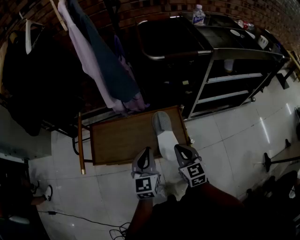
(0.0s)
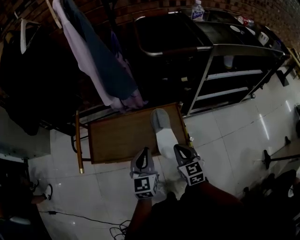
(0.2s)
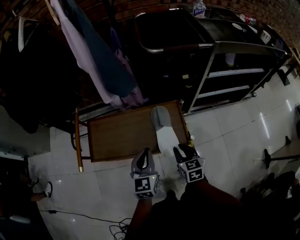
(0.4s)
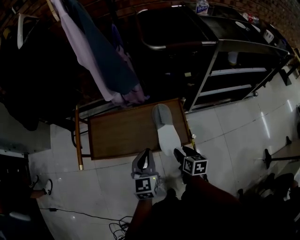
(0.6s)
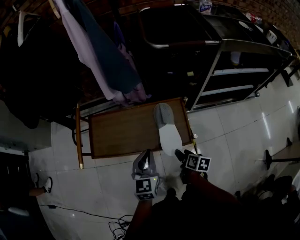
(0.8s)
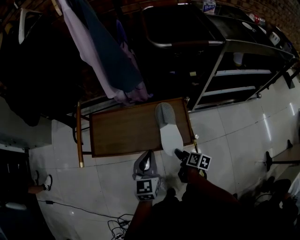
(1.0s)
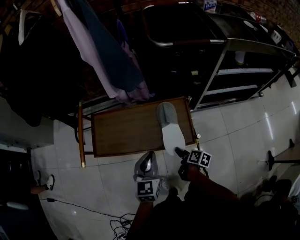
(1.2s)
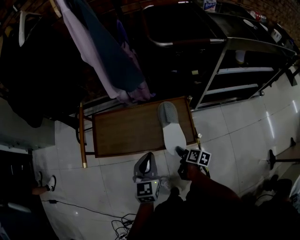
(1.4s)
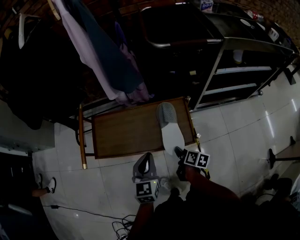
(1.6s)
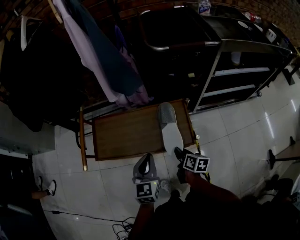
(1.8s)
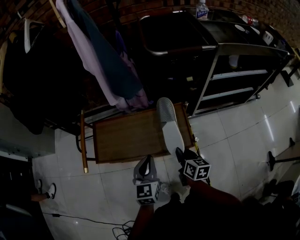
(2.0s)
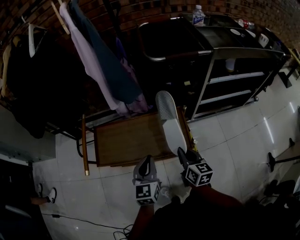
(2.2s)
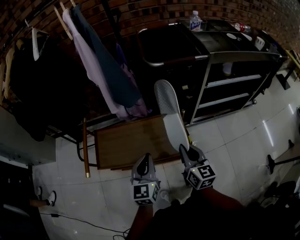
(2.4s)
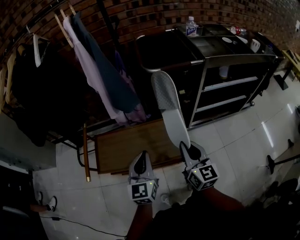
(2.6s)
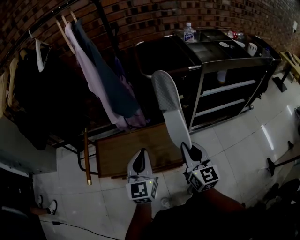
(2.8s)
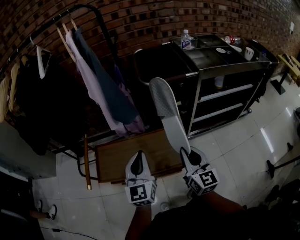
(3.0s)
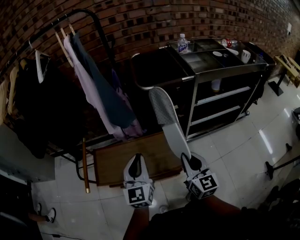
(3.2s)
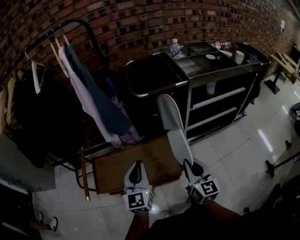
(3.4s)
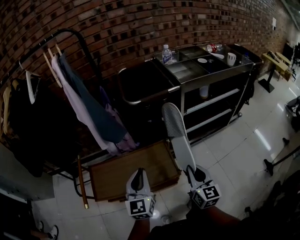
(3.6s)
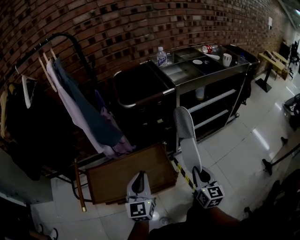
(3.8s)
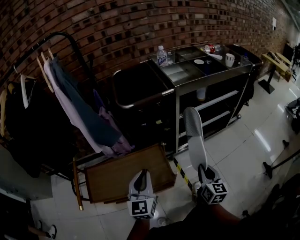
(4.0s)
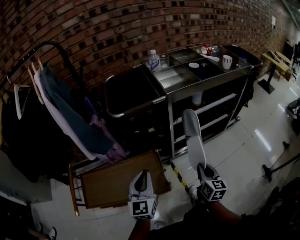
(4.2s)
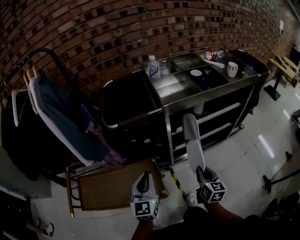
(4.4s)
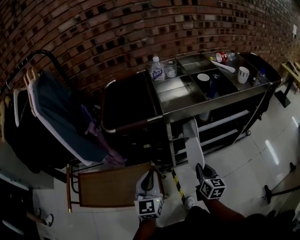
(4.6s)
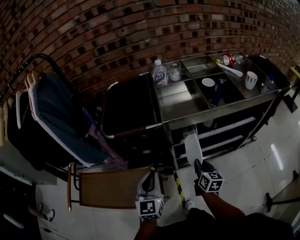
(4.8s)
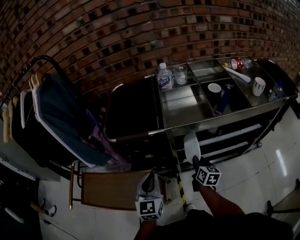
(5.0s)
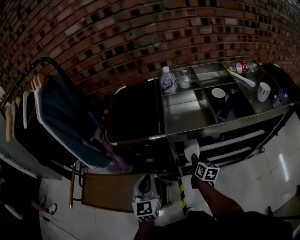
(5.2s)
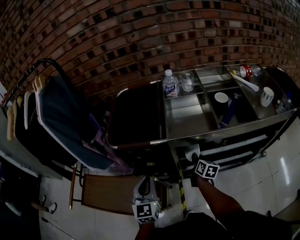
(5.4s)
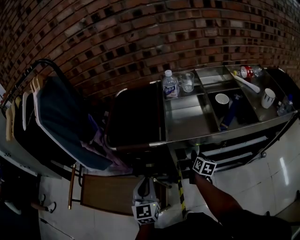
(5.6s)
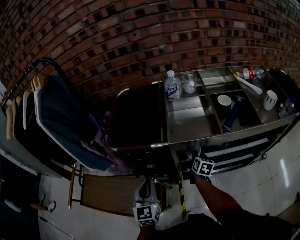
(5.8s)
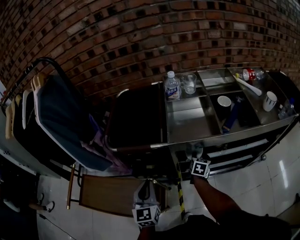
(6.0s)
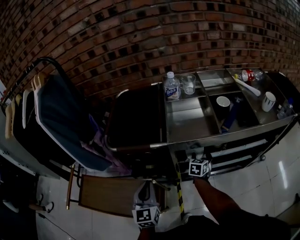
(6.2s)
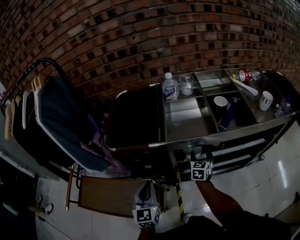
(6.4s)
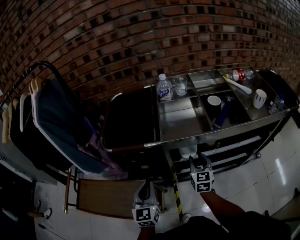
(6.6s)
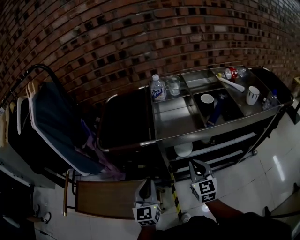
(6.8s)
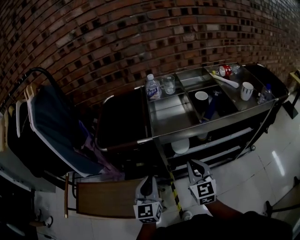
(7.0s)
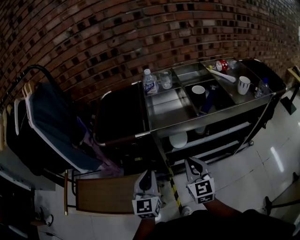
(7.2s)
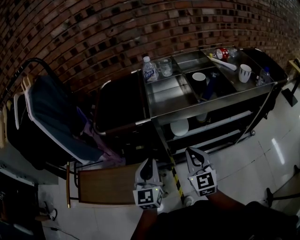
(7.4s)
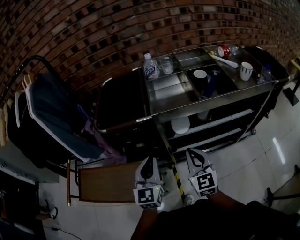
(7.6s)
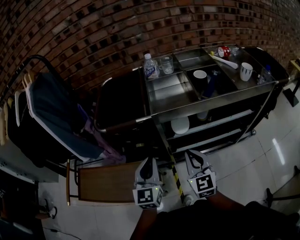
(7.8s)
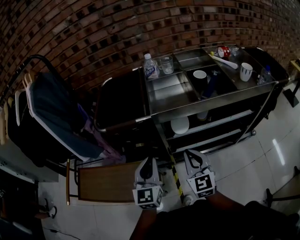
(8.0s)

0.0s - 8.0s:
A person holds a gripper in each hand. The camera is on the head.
0.0s - 1.6s: The right gripper heads downward, covering some 15 cm, twists roughly 60 degrees clockwise, seen from behind, and opens and closes again. Meanwhile the left gripper shifts about 5 cm downward.
1.6s - 3.2s: The right gripper goes roughly 30 cm upward, and tilts its fingers roughly 40 degrees upward. The left gripper goes about 15 cm upward, and changes its angle by some 20 degrees.
3.2s - 4.8s: The right gripper heads to the right, forward and downward, covering about 40 cm, and changes its angle by some 30 degrees. Meanwhile the left gripper travels to the right and forward by roughly 30 cm.
4.8s - 6.4s: The right gripper shifts some 20 cm forward, swivels approximately 30 degrees, and opens.
6.4s - 8.0s: The left gripper is displaced to the right and upward by some 10 cm; the right gripper travels backward and upward by roughly 25 cm, rotates about 30 degrees, and closes.

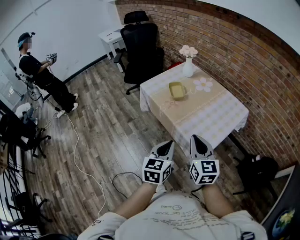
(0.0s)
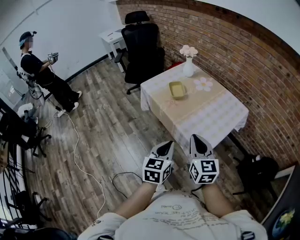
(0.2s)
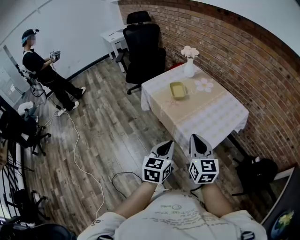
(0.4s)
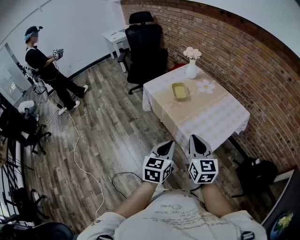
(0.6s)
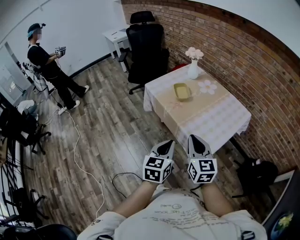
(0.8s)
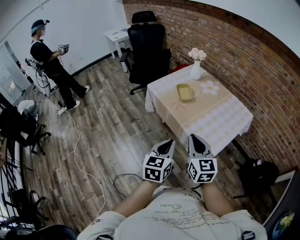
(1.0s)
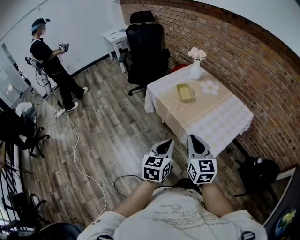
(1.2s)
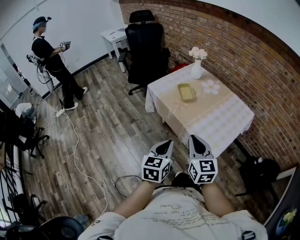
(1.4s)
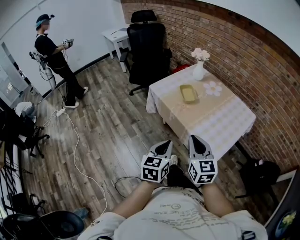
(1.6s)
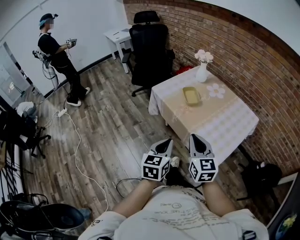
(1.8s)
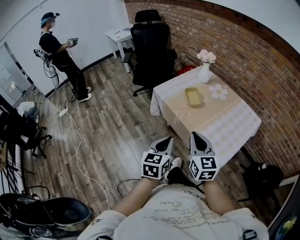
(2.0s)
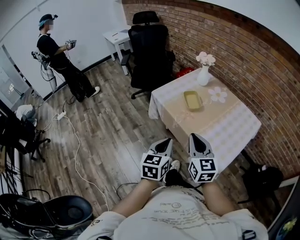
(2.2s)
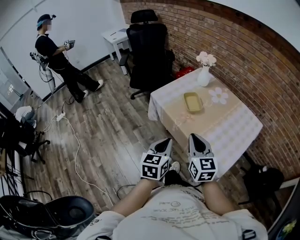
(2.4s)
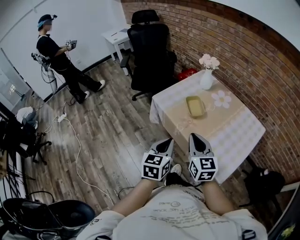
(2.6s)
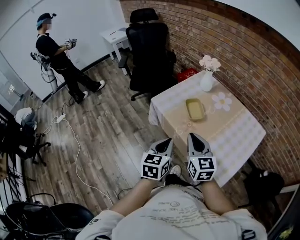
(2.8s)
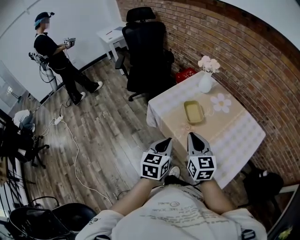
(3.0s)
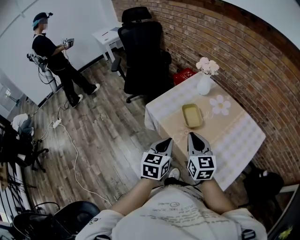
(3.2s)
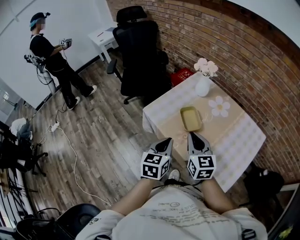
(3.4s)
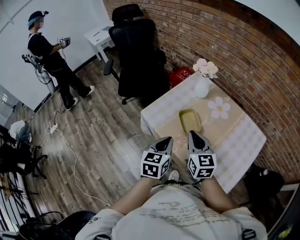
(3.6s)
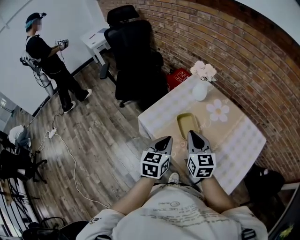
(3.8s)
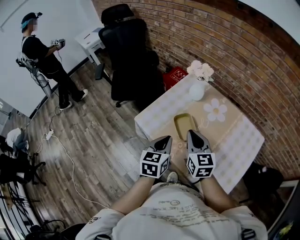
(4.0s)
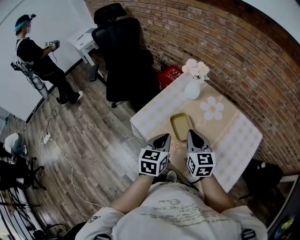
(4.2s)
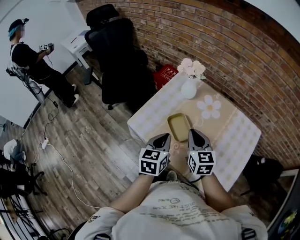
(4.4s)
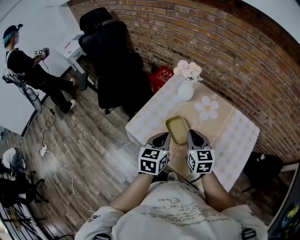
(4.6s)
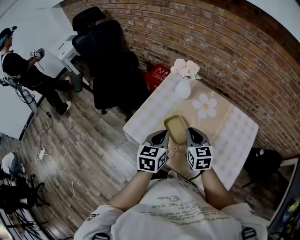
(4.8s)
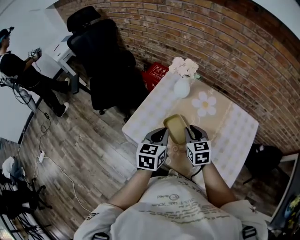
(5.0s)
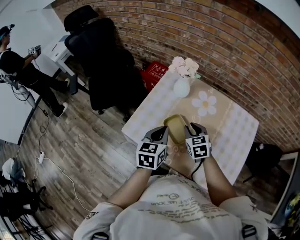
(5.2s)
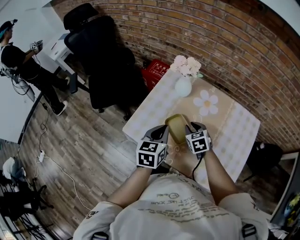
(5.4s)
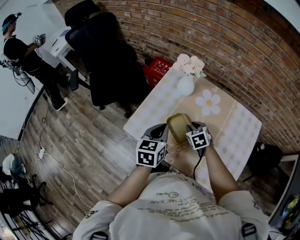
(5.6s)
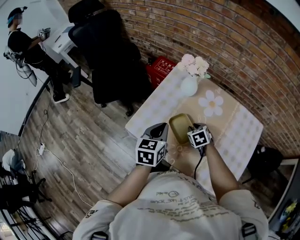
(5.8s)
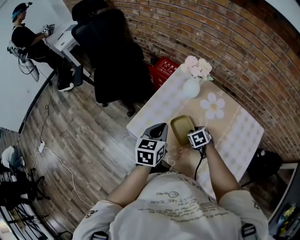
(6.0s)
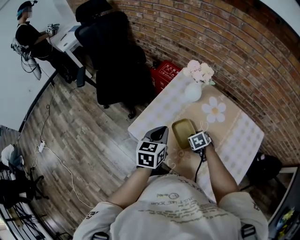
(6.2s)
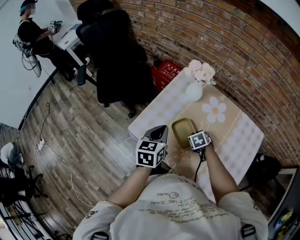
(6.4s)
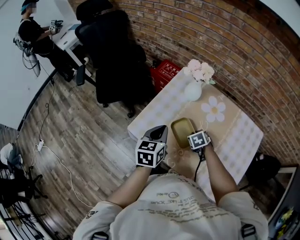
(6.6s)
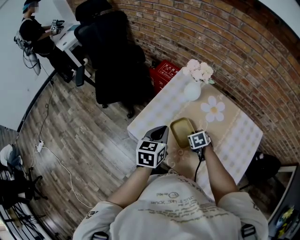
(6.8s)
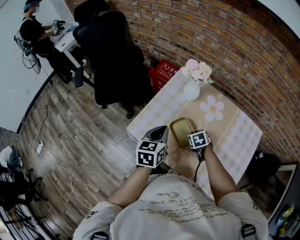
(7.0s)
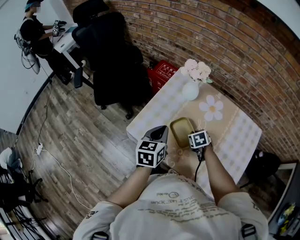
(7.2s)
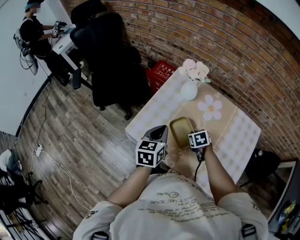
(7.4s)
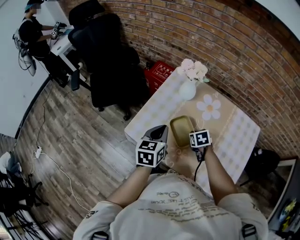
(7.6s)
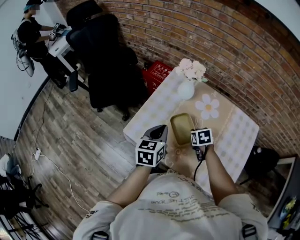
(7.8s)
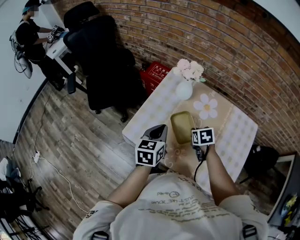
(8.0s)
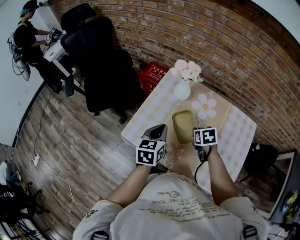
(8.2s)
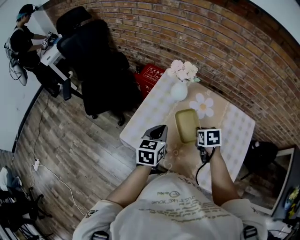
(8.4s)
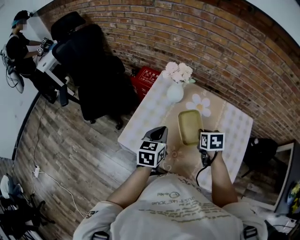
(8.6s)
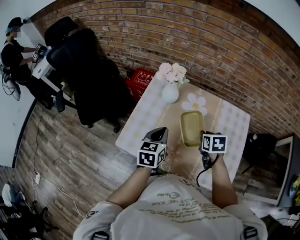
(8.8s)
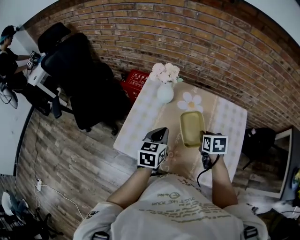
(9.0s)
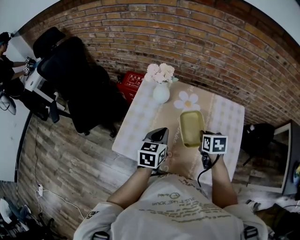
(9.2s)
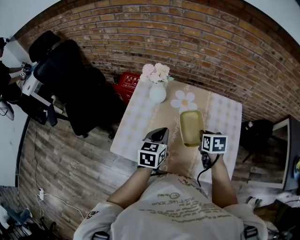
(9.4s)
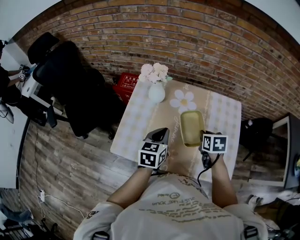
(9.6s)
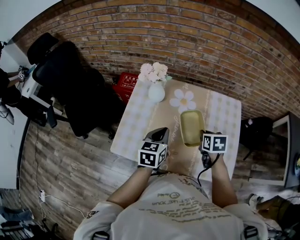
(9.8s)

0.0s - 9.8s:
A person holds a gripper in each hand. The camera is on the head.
0.0s - 1.4s: Both grippers travel together to the left, approximately 10 cm.
1.4s - 2.8s: The grippers both shift forward by some 20 cm.
2.8s - 4.2s: Both grippers travel together forward, some 20 cm.
4.2s - 5.6s: The right gripper goes about 20 cm downward and forward, tilts its fingers roughly 30 degrees downward, and opens, while the left gripper shifts roughly 10 cm forward.
5.6s - 7.0s: The right gripper closes up.
7.0s - 8.4s: The right gripper is displaced upward by approximately 10 cm, and rotates approximately 20 degrees.
8.4s - 9.8s: The two grippers go approximately 10 cm to the right. The right gripper rotates approximately 20 degrees.

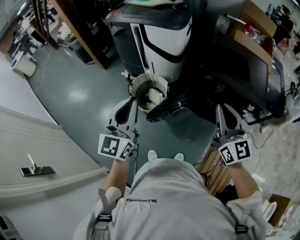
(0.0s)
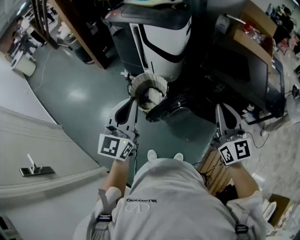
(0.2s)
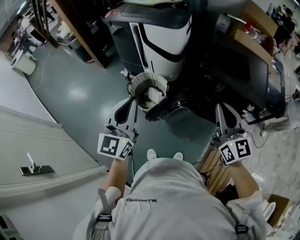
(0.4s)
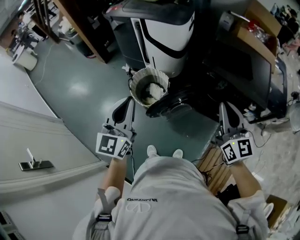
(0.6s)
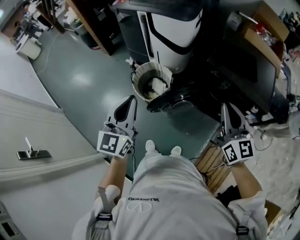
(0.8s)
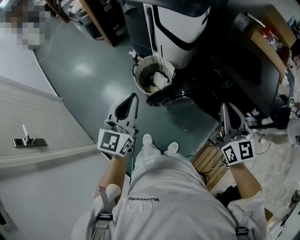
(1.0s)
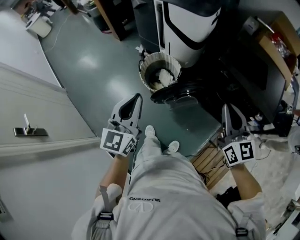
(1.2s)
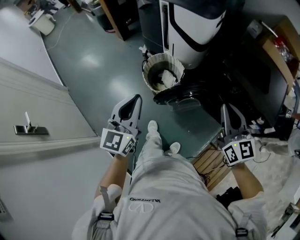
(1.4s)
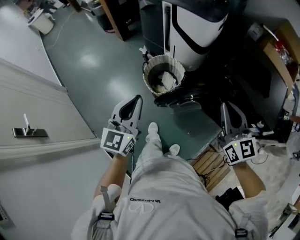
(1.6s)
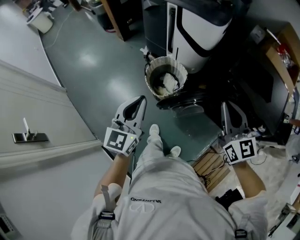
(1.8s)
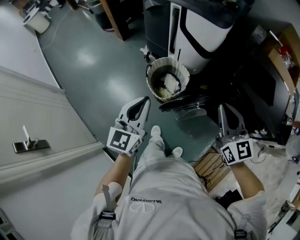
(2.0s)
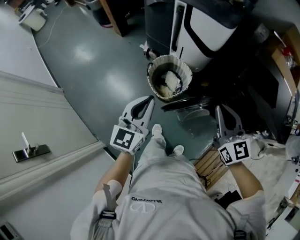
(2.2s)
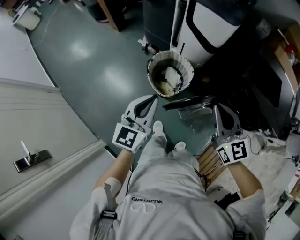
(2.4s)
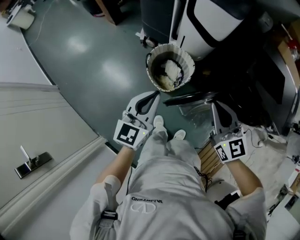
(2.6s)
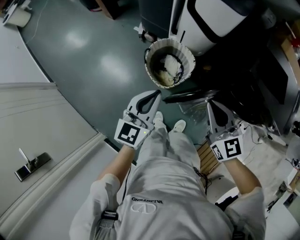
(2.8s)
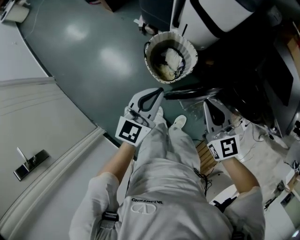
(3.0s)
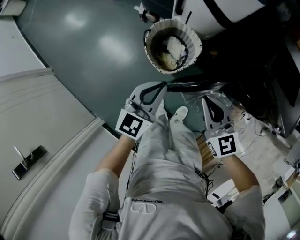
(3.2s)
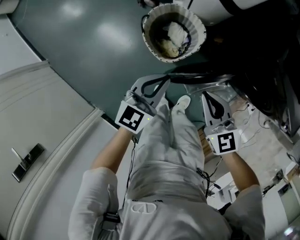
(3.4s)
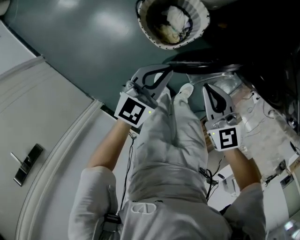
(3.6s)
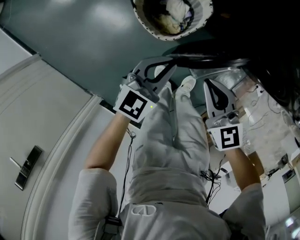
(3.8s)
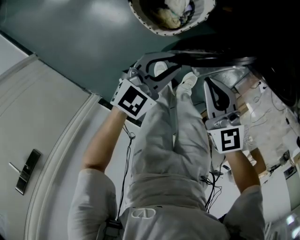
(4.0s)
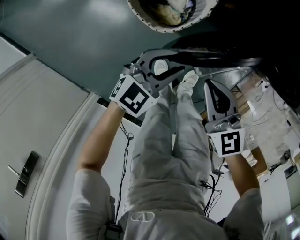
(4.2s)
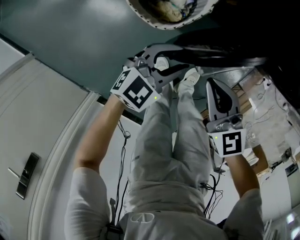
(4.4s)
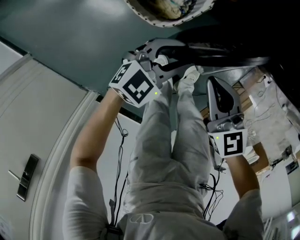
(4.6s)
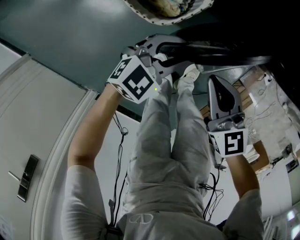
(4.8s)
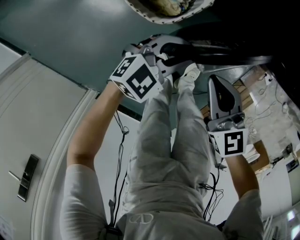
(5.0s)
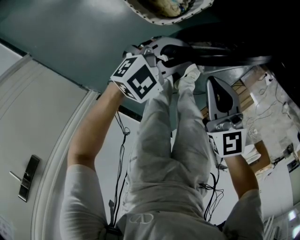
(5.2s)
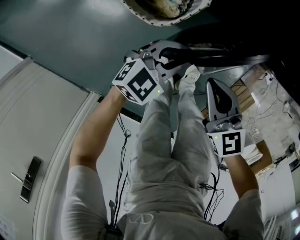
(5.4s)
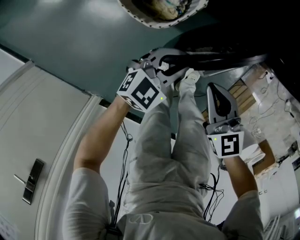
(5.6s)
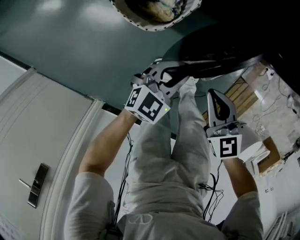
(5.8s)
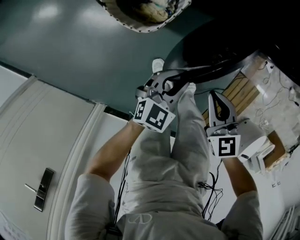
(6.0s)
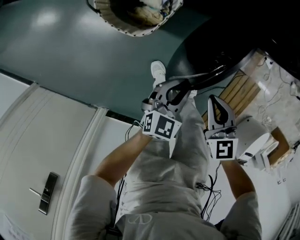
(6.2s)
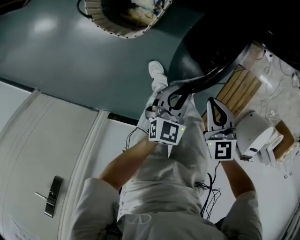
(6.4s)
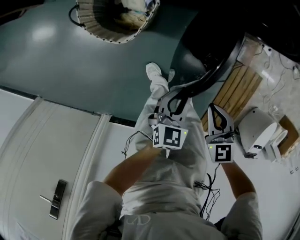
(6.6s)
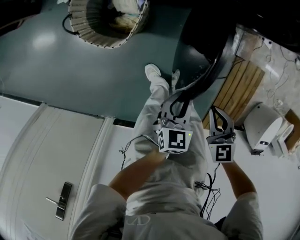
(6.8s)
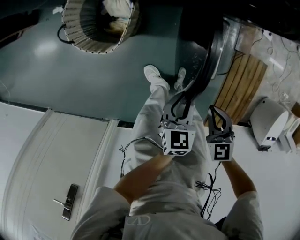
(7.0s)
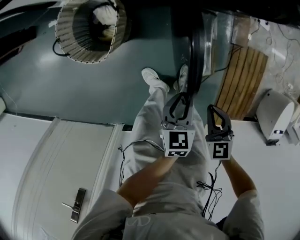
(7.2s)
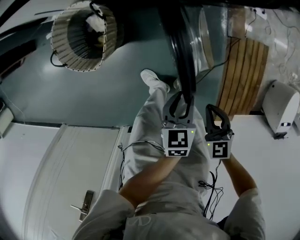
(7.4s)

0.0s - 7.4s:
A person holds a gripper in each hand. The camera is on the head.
0.0s - 1.4s: Both grippers move downward, about 5 cm.
1.4s - 3.0s: The left gripper heads forward and downward, covering about 25 cm. The right gripper moves to the left, forward and downward, approximately 30 cm.
3.0s - 4.4s: The two grippers go about 30 cm downward. The left gripper rotates approximately 40 degrees, and opens.
4.4s - 6.0s: The grippers both shift to the right by some 10 cm.
6.0s - 7.4s: The left gripper moves to the right, roughly 20 cm, and changes its angle by about 30 degrees, while the right gripper heads to the right and backward, covering roughly 25 cm.
